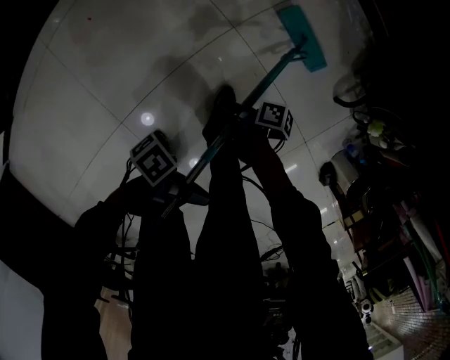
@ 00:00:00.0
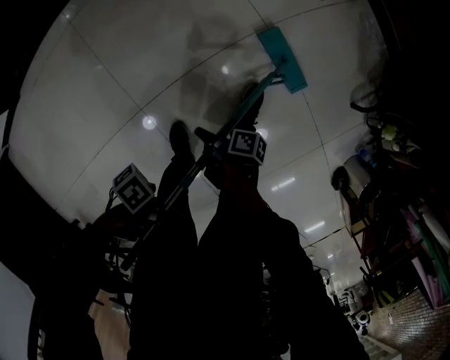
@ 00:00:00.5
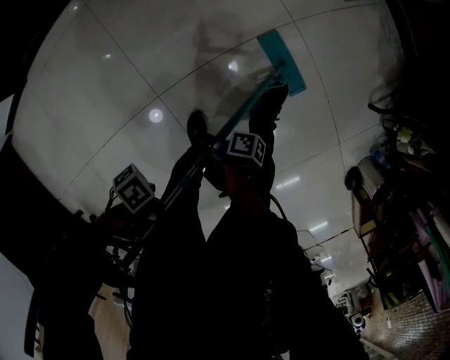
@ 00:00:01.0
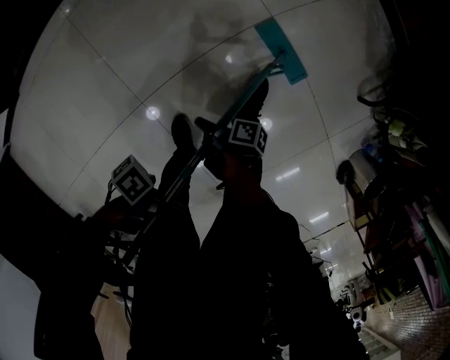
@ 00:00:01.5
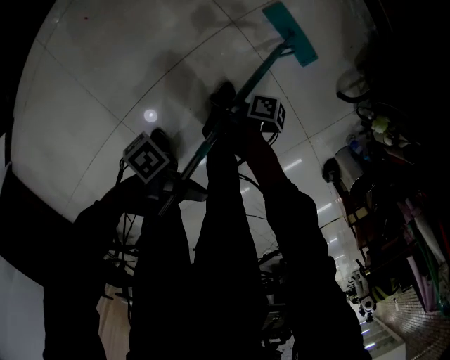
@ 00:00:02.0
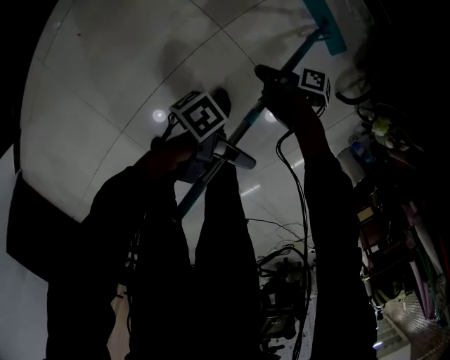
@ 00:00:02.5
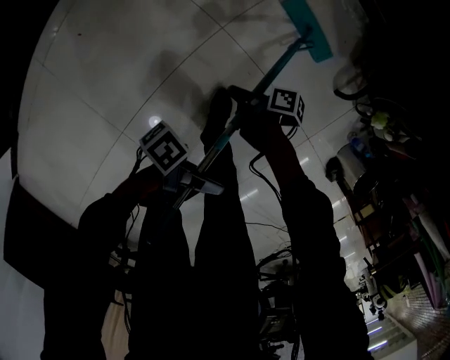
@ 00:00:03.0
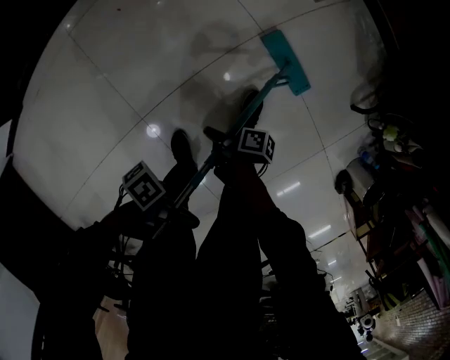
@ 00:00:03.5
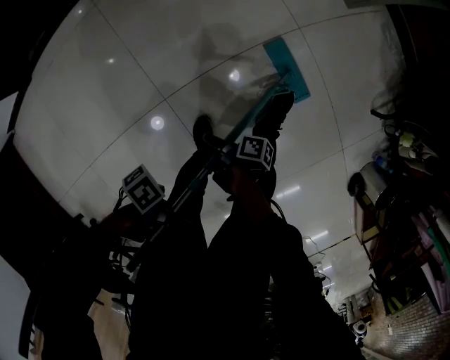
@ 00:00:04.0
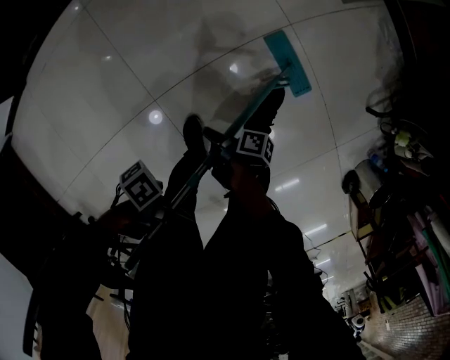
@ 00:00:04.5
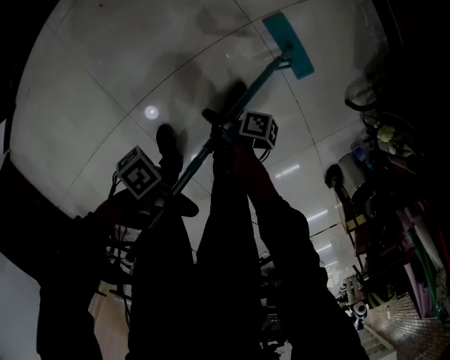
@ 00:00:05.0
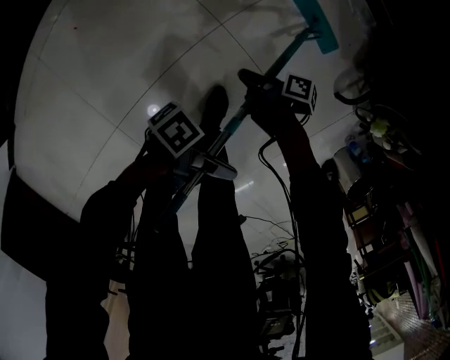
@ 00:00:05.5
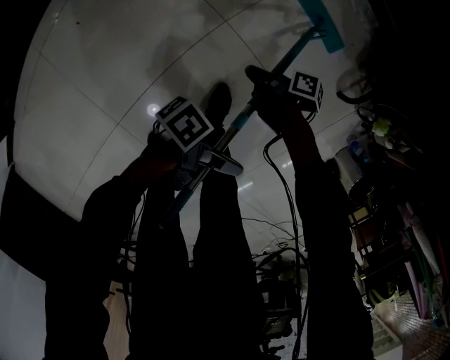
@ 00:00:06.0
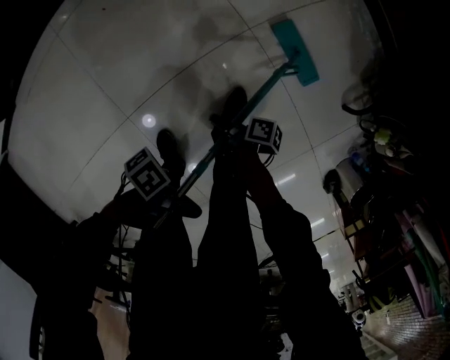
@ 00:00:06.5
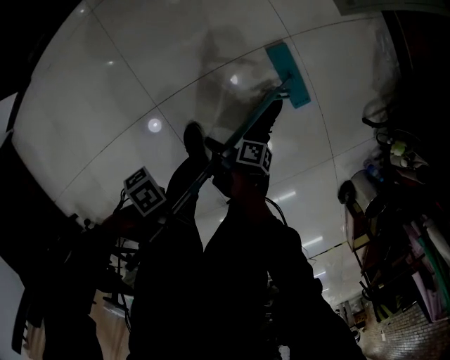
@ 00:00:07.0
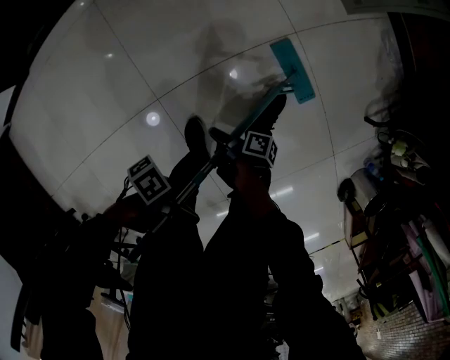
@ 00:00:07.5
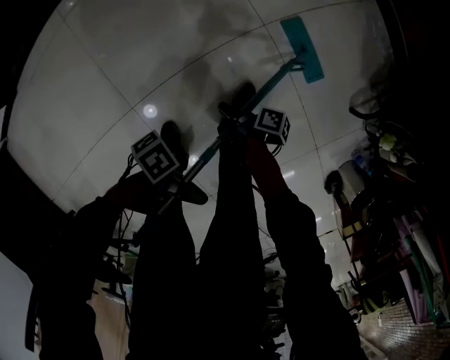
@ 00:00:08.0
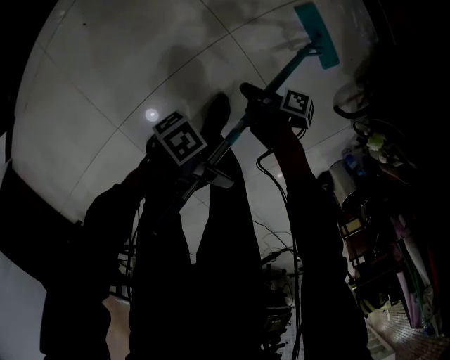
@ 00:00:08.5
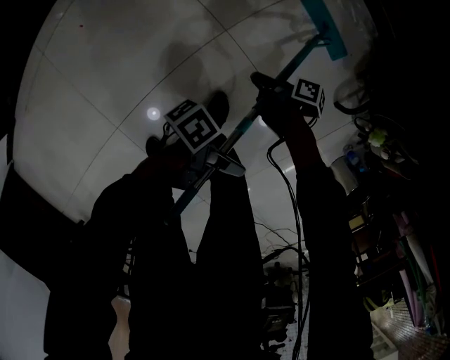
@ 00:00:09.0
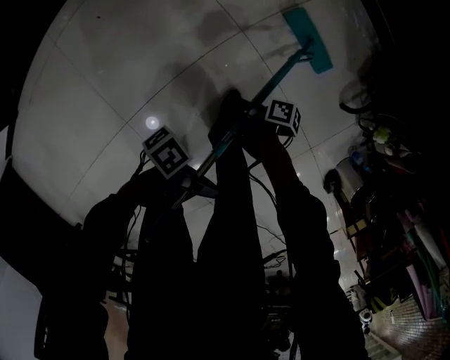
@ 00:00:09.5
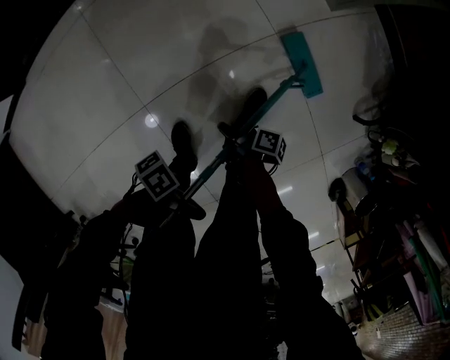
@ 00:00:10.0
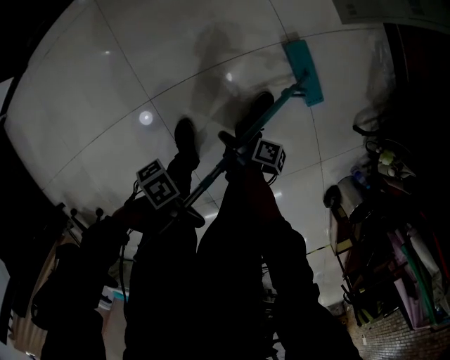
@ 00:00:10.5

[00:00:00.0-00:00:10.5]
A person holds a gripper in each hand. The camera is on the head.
00:00:00.0 to 00:00:02.0: The left gripper moves about 20 cm downward and comes back; the right gripper travels downward and back again, roughly 20 cm each way.
00:00:02.0 to 00:00:04.0: The left gripper shifts by about 30 cm, while the right gripper ends up some 35 cm from where it was.
00:00:06.5 to 00:00:08.5: The left gripper moves some 20 cm, while the right gripper moves some 20 cm.
00:00:08.5 to 00:00:10.5: The left gripper ends up about 30 cm from where it was. Meanwhile the right gripper shifts by about 35 cm.

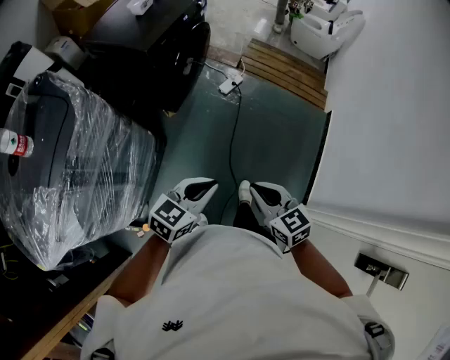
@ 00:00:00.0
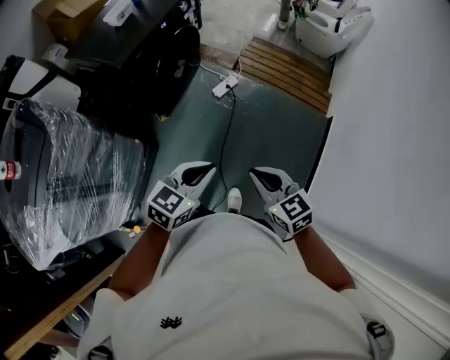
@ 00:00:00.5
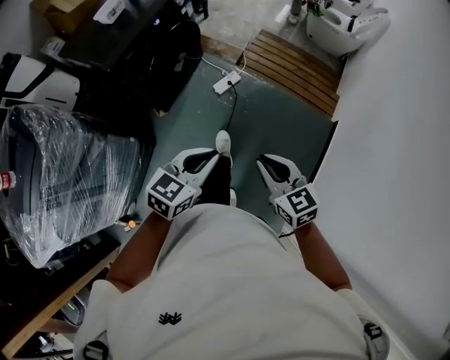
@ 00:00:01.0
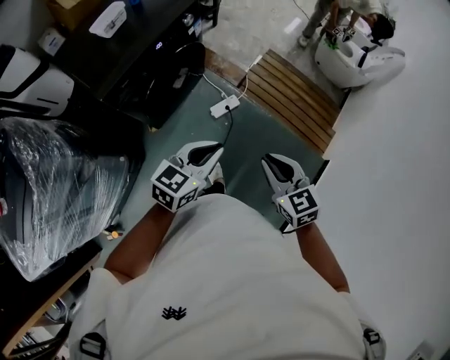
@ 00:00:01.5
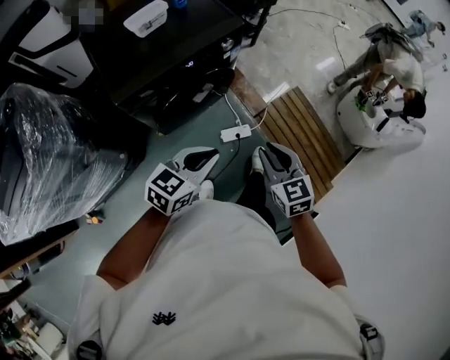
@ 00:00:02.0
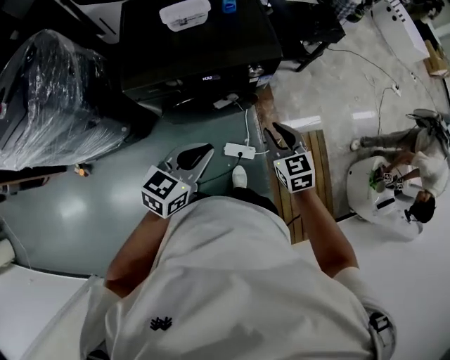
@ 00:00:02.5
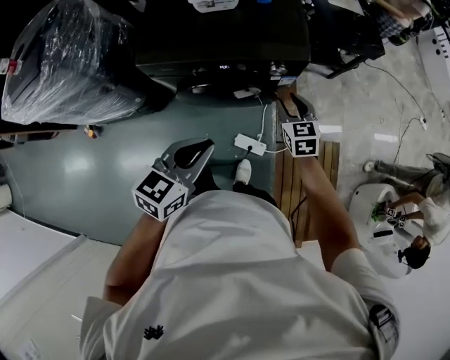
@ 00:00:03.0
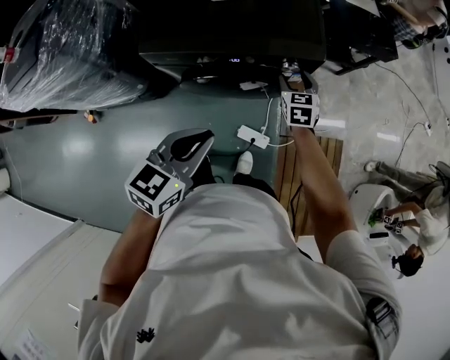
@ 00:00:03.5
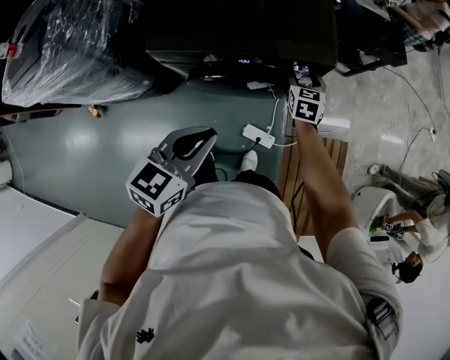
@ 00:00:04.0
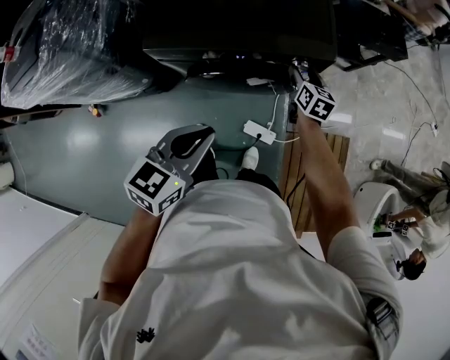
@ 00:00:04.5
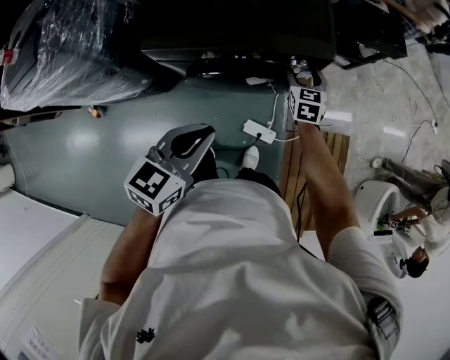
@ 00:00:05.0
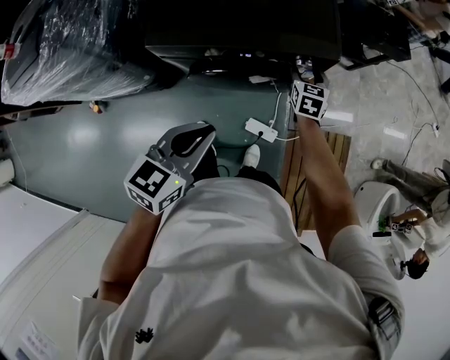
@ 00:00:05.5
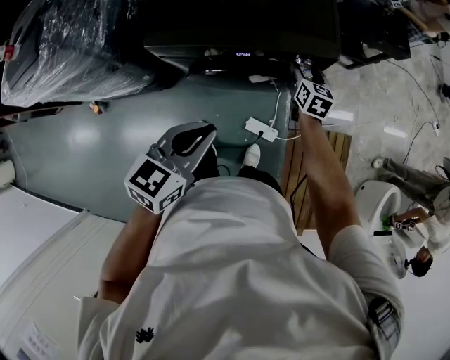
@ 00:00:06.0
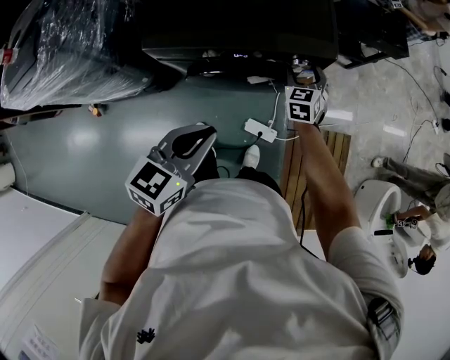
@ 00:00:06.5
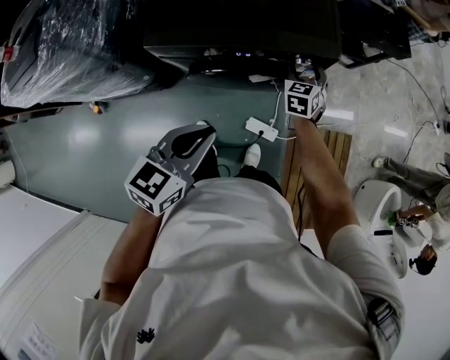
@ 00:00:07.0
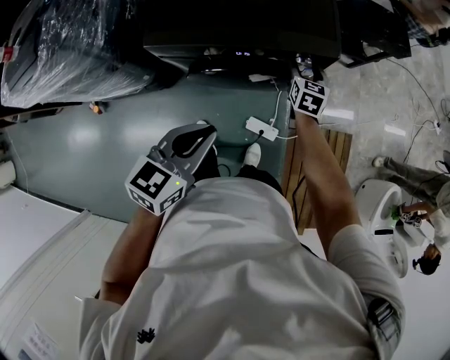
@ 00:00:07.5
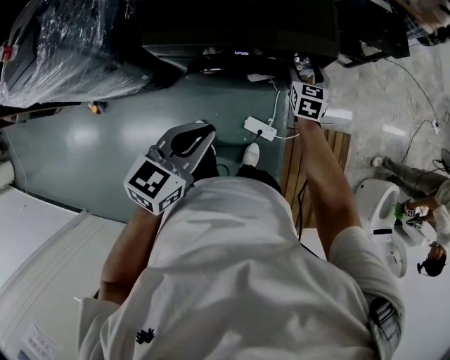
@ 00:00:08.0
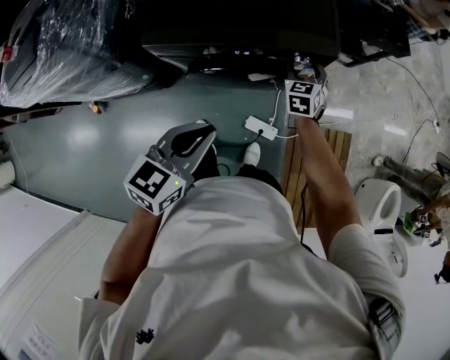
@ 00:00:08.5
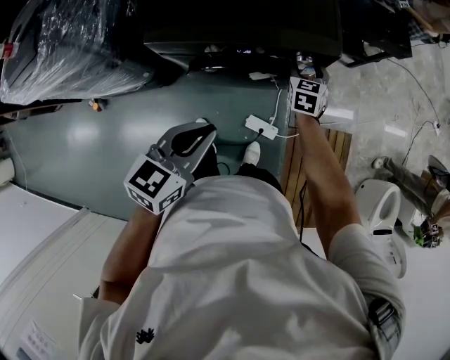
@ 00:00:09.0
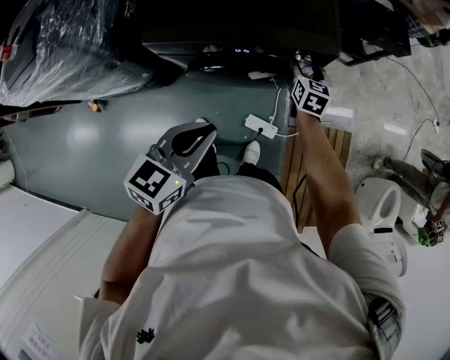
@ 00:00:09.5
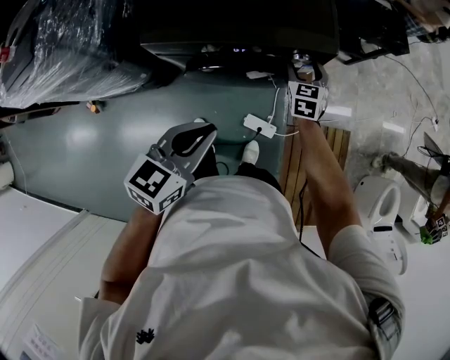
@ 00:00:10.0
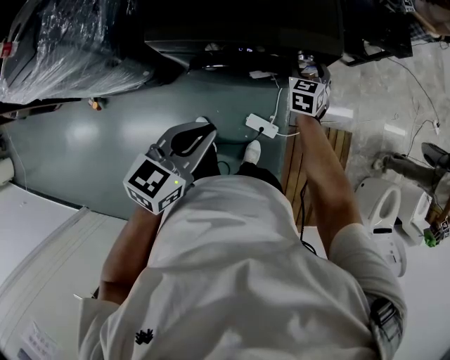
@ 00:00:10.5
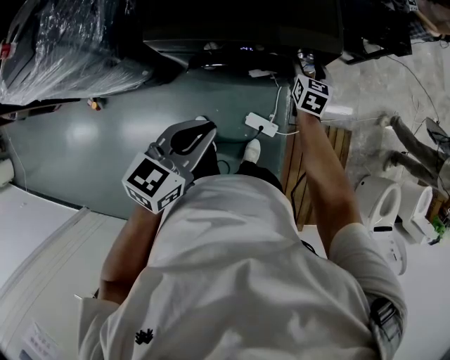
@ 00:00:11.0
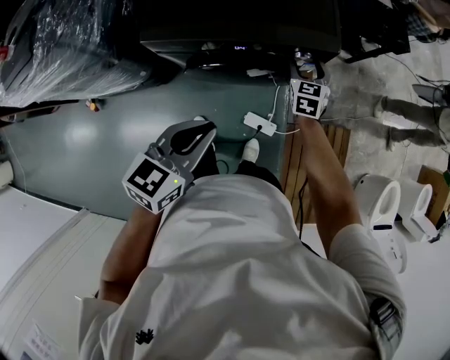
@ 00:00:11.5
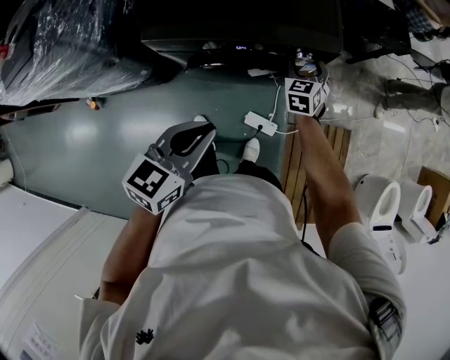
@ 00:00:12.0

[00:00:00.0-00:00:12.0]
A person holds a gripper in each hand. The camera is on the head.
00:00:00.0 to 00:00:02.0: Both grippers are carried forward, approximately 60 cm. The right gripper rotates some 30 degrees. The left gripper changes its angle by approximately 30 degrees.
00:00:02.0 to 00:00:04.0: The left gripper ends up some 15 cm from where it was, and swivels some 40 degrees, while the right gripper shifts by roughly 50 cm, and opens its fingers.
00:00:08.0 to 00:00:12.0: The grippers stay close to where they were, moving slightly.

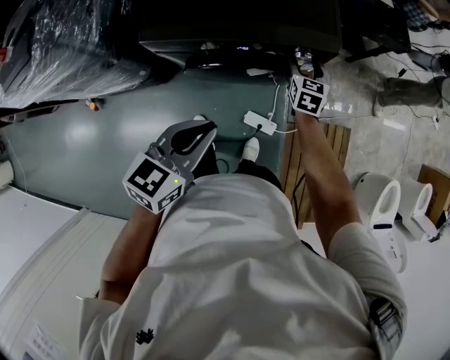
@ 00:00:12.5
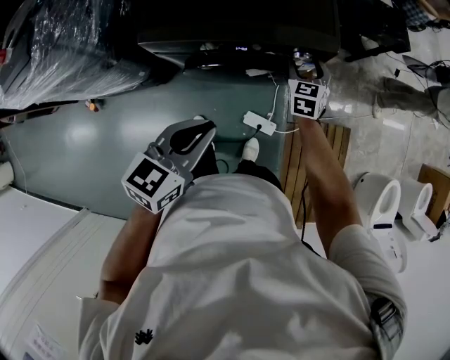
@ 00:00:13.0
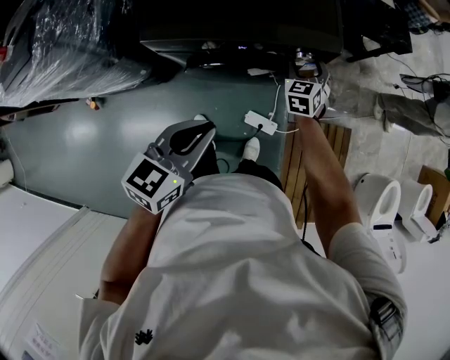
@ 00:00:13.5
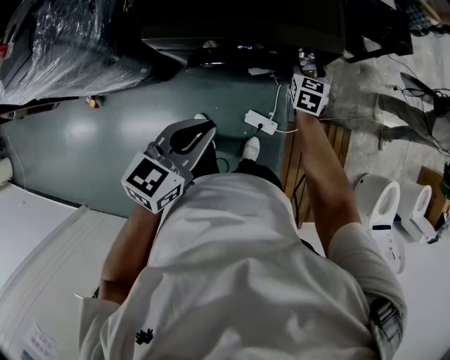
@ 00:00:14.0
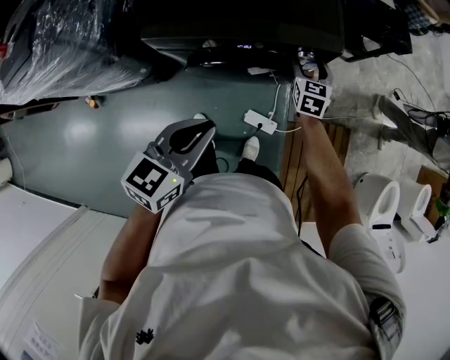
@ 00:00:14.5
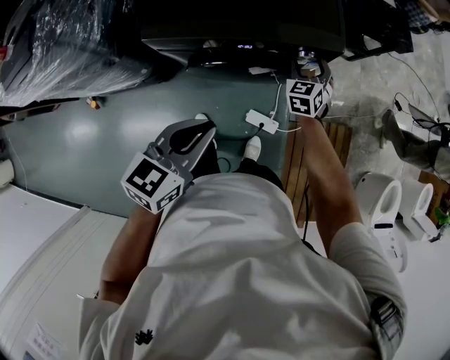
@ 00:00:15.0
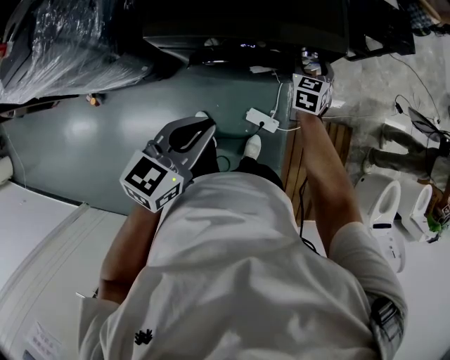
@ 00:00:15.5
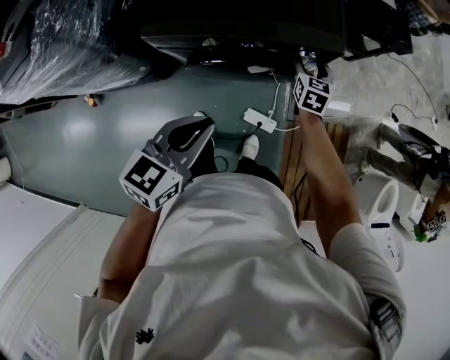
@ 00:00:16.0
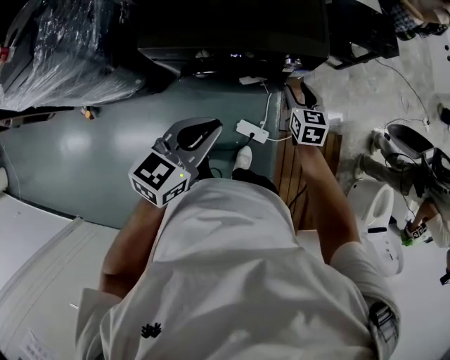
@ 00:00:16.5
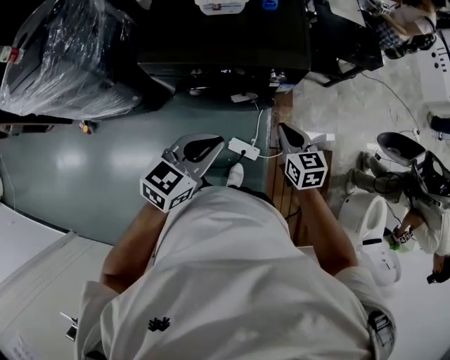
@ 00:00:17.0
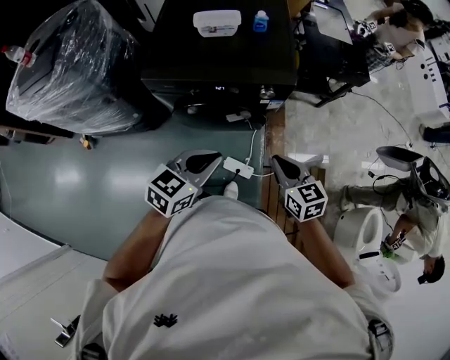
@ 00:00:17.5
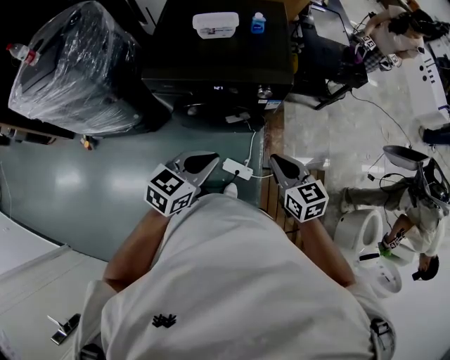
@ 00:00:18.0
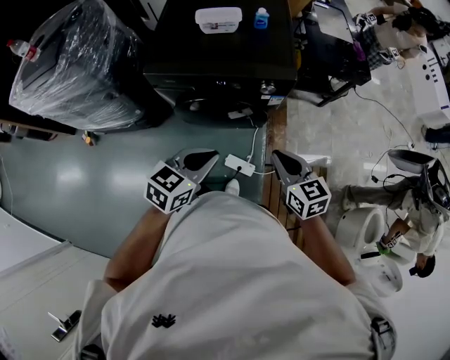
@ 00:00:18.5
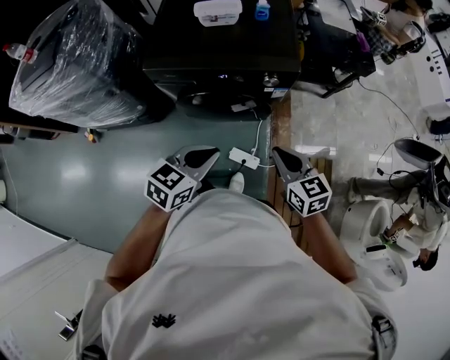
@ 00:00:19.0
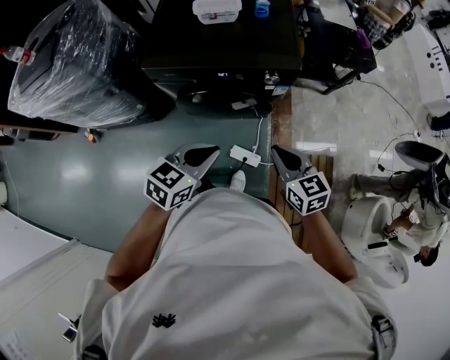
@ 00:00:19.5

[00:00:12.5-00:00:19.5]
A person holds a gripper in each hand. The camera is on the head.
00:00:12.5 to 00:00:14.5: The grippers make only small movements.
00:00:14.5 to 00:00:16.0: The grippers make only small movements.
00:00:16.0 to 00:00:17.5: The right gripper shifts roughly 30 cm backward and upward, swivels about 30 degrees, and closes. Meanwhile the left gripper shifts about 10 cm to the right.
00:00:17.5 to 00:00:19.5: The grippers make only small movements.
